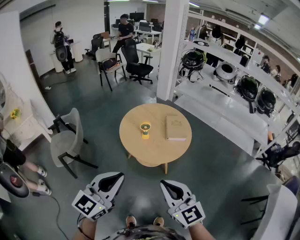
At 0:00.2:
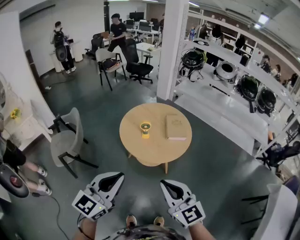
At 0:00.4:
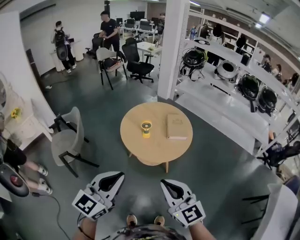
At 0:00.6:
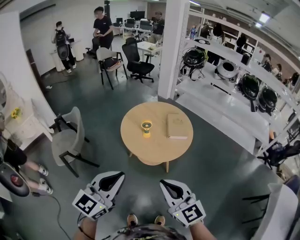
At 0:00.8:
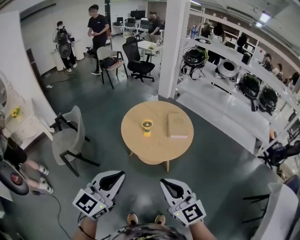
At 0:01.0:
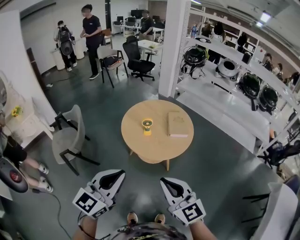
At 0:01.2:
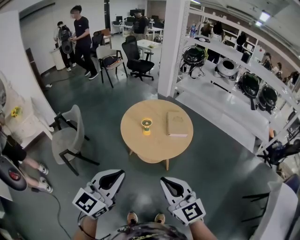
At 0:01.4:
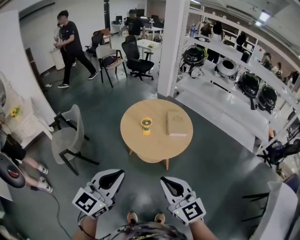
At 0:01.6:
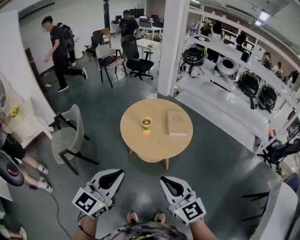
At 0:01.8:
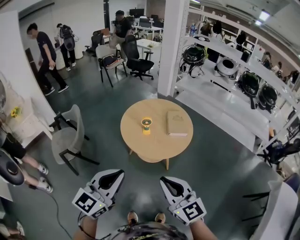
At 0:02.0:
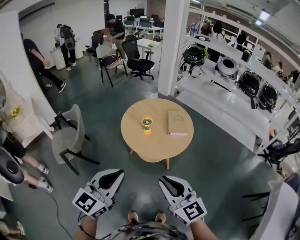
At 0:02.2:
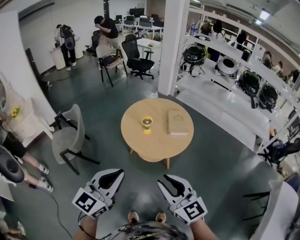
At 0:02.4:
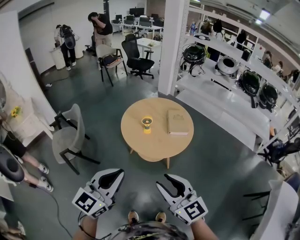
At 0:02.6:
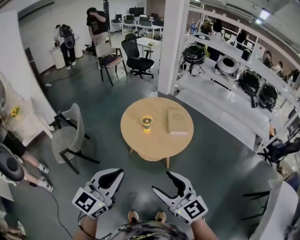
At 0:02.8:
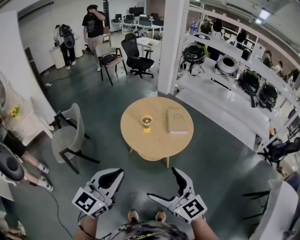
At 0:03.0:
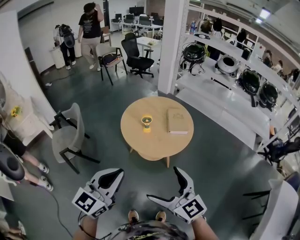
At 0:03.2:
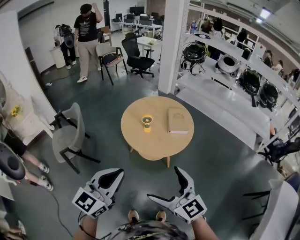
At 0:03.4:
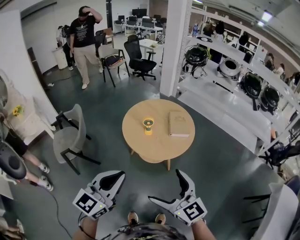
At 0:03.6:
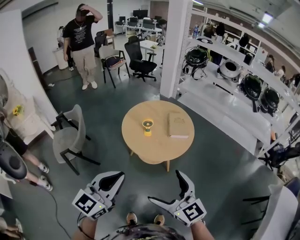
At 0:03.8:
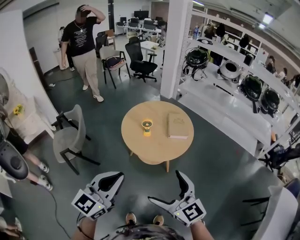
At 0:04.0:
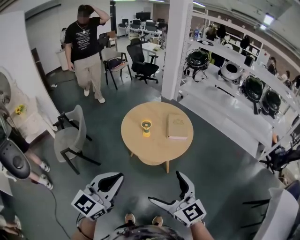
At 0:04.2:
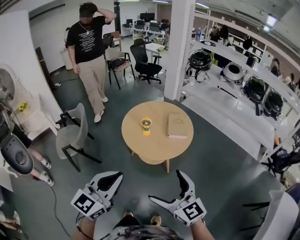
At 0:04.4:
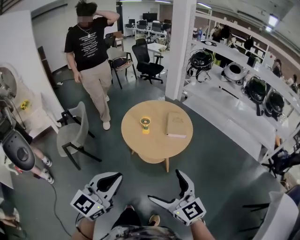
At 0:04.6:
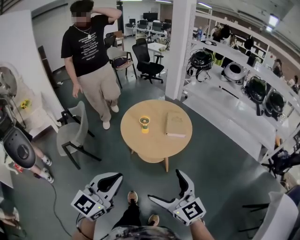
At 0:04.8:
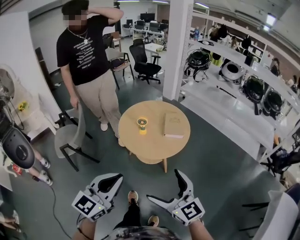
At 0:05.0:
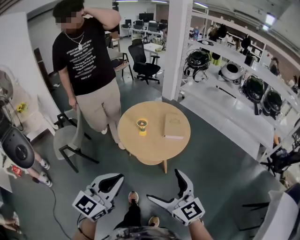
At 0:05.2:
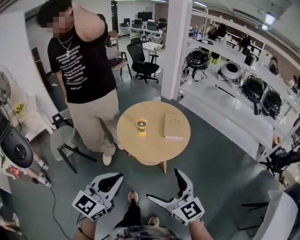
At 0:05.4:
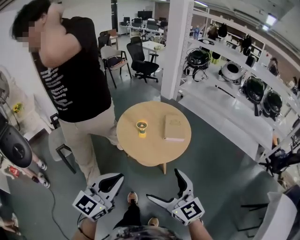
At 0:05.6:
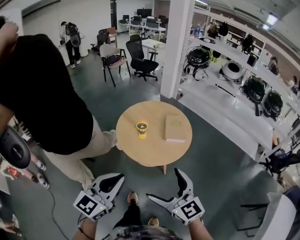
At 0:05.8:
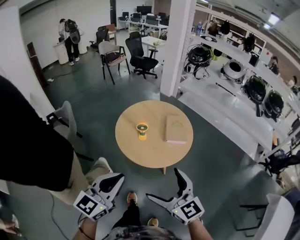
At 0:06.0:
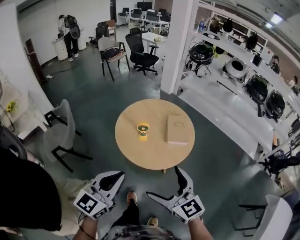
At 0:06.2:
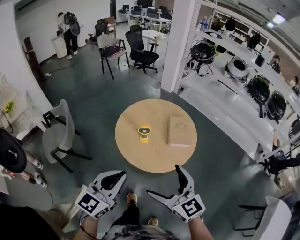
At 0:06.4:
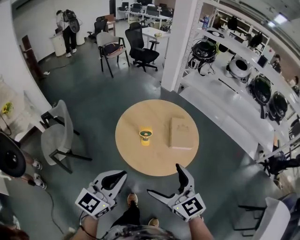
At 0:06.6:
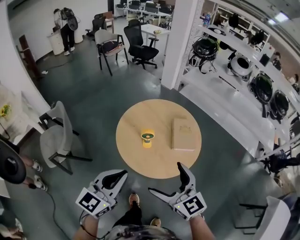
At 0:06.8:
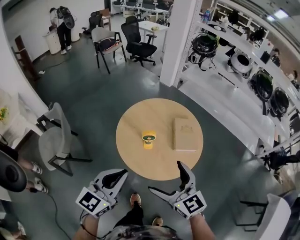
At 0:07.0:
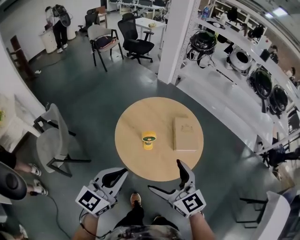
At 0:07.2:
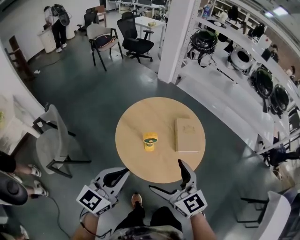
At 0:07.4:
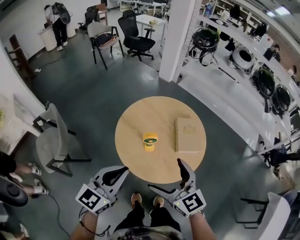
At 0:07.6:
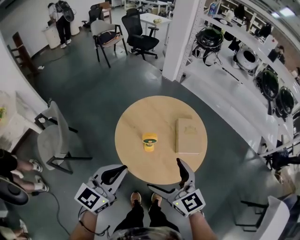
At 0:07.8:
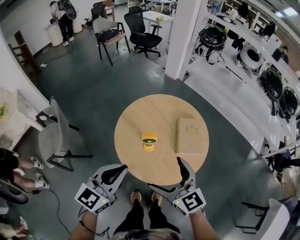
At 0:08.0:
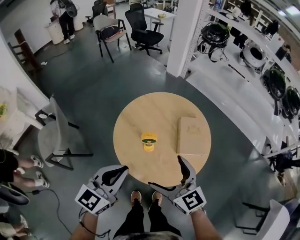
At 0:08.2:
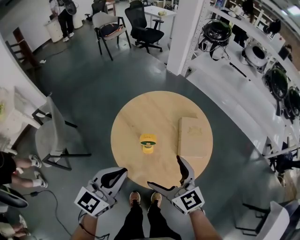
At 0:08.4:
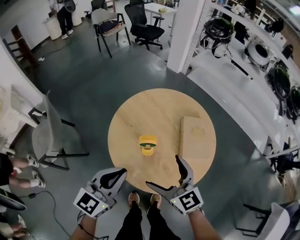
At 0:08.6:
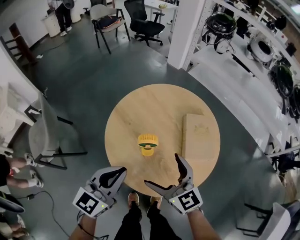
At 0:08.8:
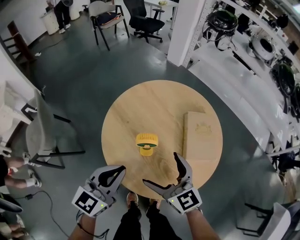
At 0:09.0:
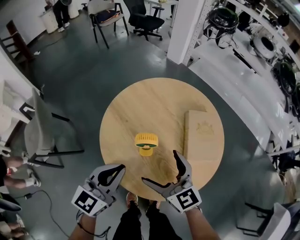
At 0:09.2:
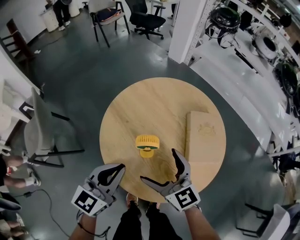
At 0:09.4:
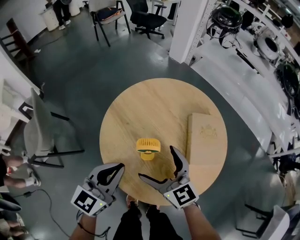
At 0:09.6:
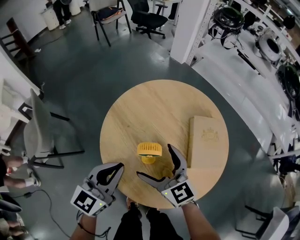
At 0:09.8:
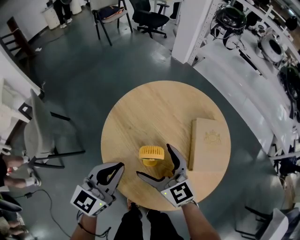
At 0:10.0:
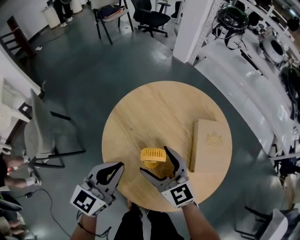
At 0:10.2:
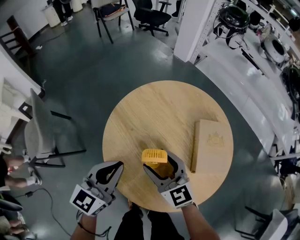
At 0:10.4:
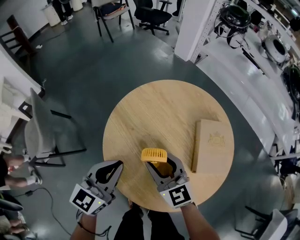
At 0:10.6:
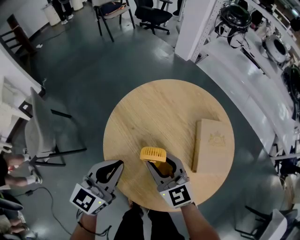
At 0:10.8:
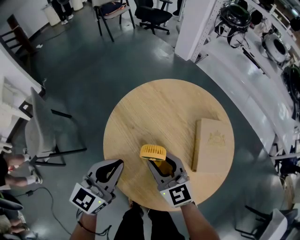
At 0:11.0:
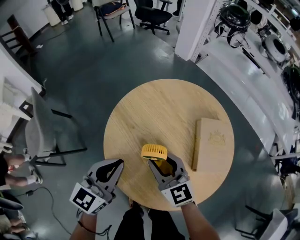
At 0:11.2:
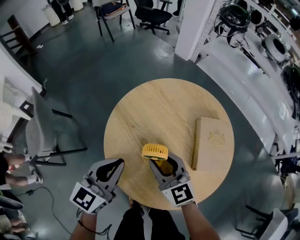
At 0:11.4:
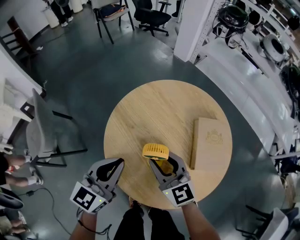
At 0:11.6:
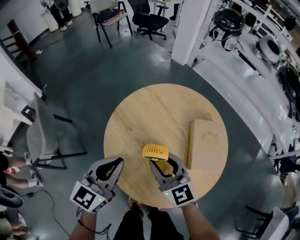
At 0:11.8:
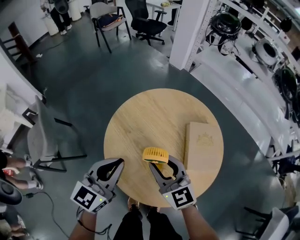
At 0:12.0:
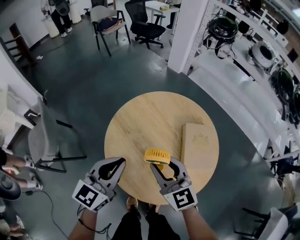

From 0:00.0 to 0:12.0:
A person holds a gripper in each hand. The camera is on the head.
From 0:00.0 to 0:01.6: There are only small adjustments of the grippers.
From 0:01.6 to 0:03.0: The right gripper opens up.
From 0:03.0 to 0:04.4: The left gripper heads to the right and backward, covering approximately 10 cm; the right gripper moves to the right, some 10 cm.
From 0:04.4 to 0:06.0: Both grippers travel together forward, roughly 15 cm.
From 0:06.0 to 0:07.6: Both grippers travel together forward, some 20 cm.
From 0:07.6 to 0:09.0: The two grippers go some 20 cm downward and forward.
From 0:09.0 to 0:10.4: The two grippers go roughly 5 cm forward. The right gripper closes its fingers.
From 0:10.4 to 0:12.0: The grippers both shift upward by some 10 cm.

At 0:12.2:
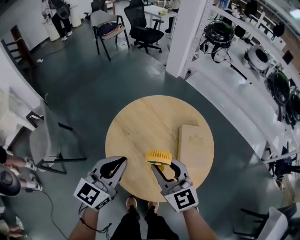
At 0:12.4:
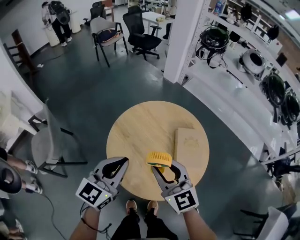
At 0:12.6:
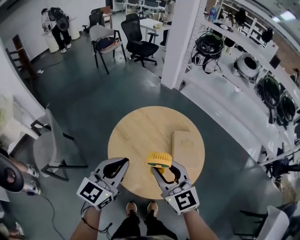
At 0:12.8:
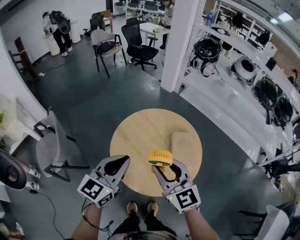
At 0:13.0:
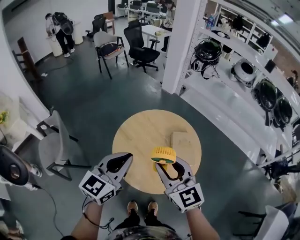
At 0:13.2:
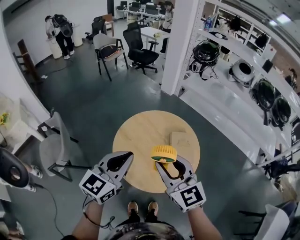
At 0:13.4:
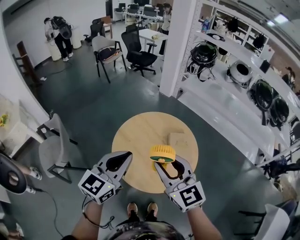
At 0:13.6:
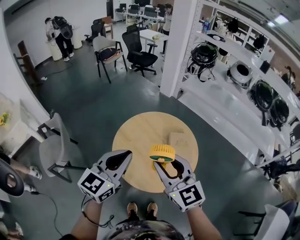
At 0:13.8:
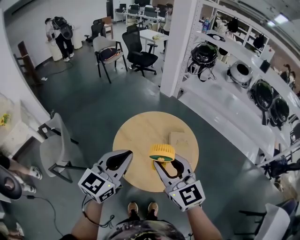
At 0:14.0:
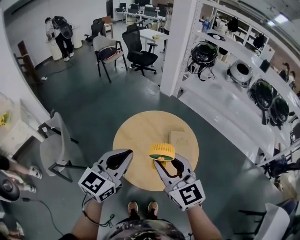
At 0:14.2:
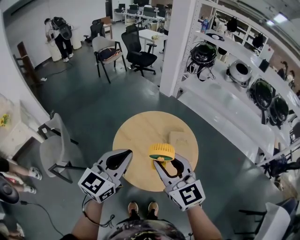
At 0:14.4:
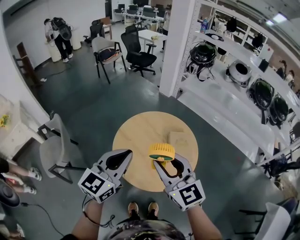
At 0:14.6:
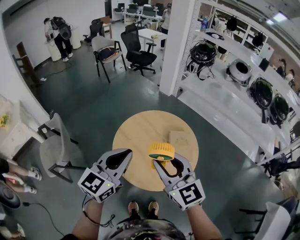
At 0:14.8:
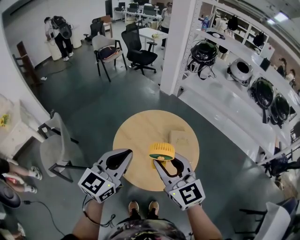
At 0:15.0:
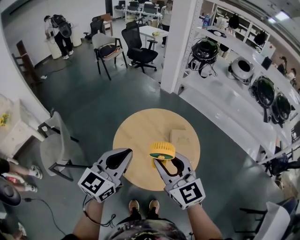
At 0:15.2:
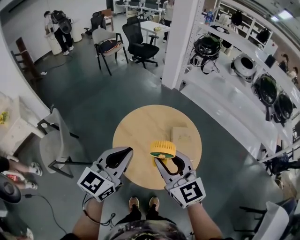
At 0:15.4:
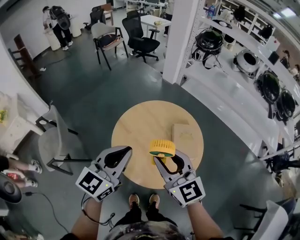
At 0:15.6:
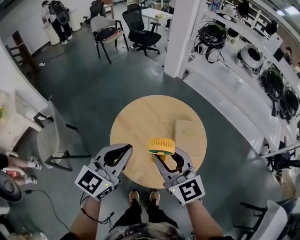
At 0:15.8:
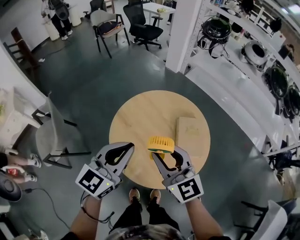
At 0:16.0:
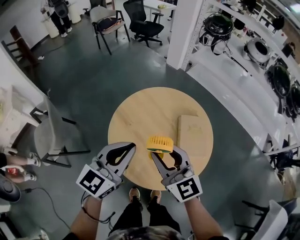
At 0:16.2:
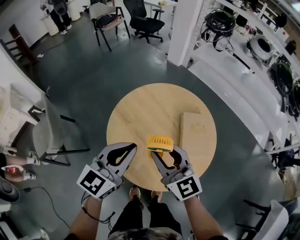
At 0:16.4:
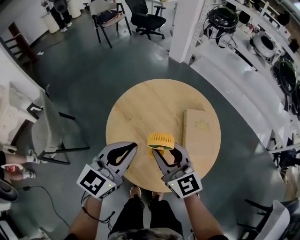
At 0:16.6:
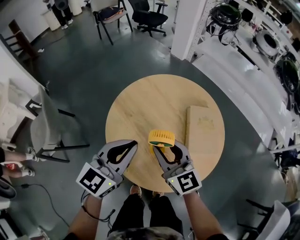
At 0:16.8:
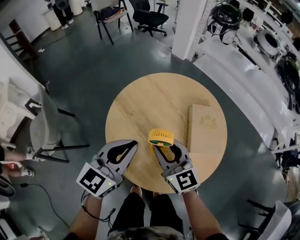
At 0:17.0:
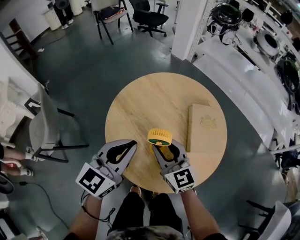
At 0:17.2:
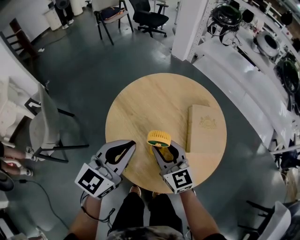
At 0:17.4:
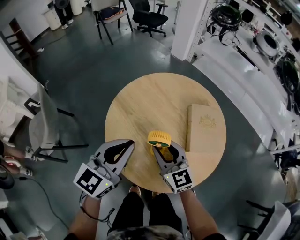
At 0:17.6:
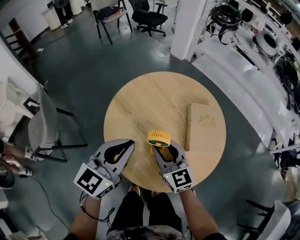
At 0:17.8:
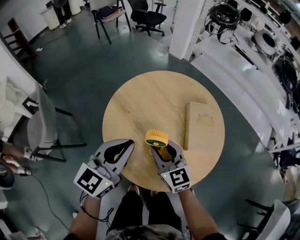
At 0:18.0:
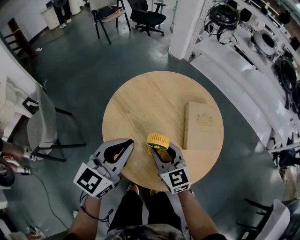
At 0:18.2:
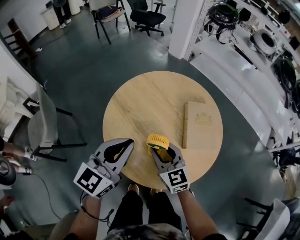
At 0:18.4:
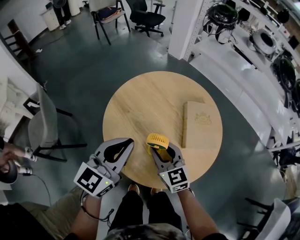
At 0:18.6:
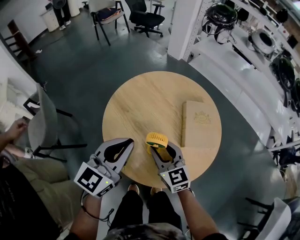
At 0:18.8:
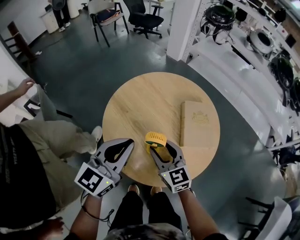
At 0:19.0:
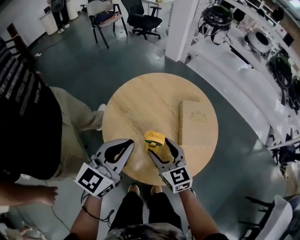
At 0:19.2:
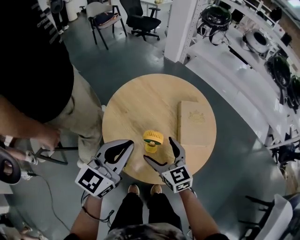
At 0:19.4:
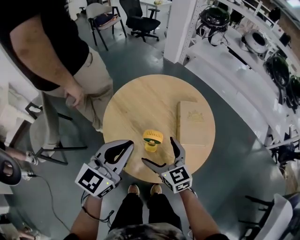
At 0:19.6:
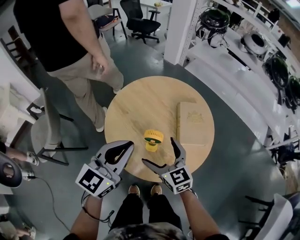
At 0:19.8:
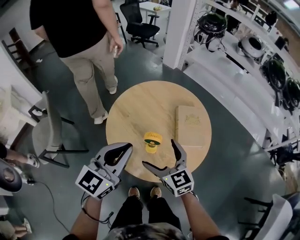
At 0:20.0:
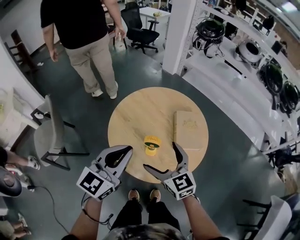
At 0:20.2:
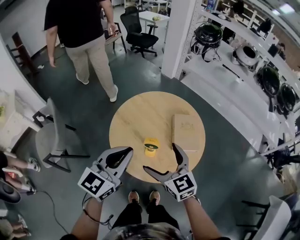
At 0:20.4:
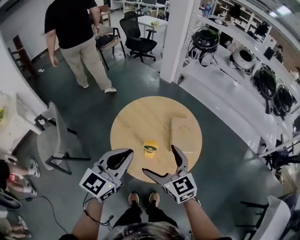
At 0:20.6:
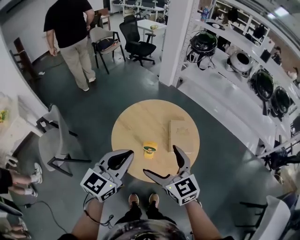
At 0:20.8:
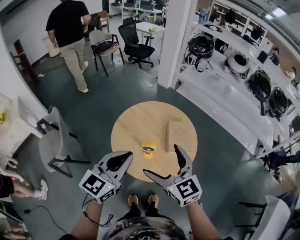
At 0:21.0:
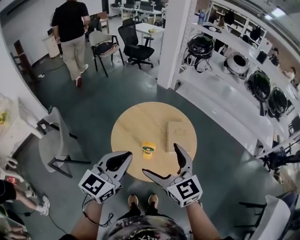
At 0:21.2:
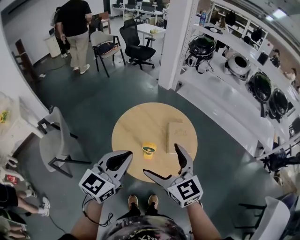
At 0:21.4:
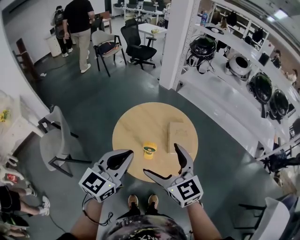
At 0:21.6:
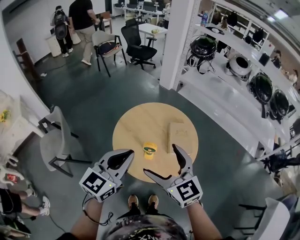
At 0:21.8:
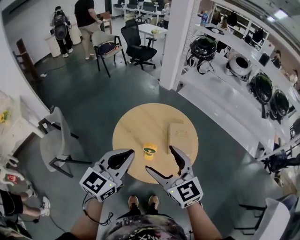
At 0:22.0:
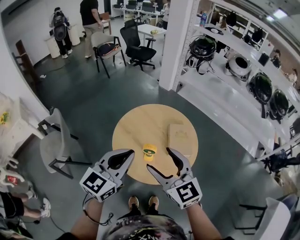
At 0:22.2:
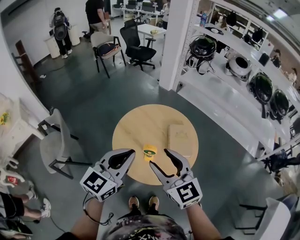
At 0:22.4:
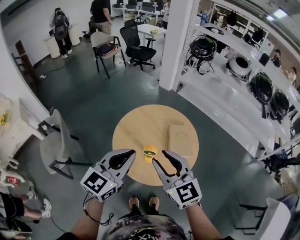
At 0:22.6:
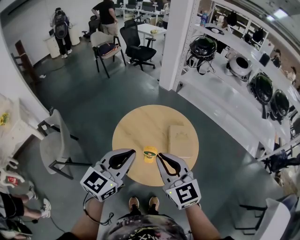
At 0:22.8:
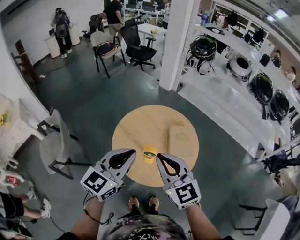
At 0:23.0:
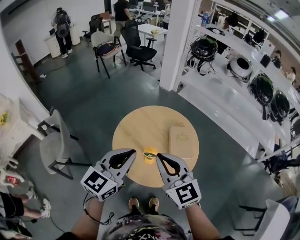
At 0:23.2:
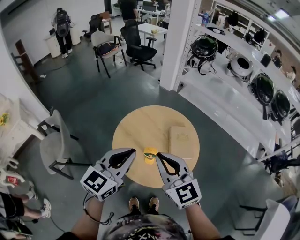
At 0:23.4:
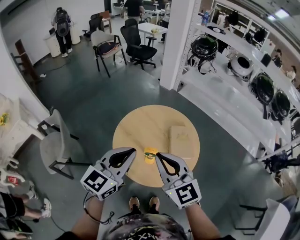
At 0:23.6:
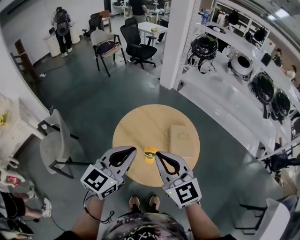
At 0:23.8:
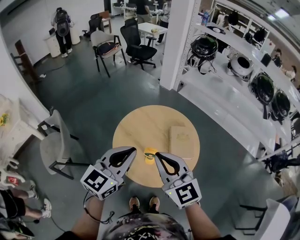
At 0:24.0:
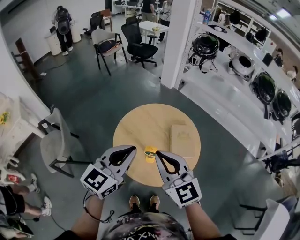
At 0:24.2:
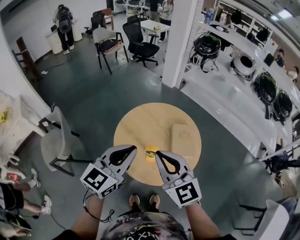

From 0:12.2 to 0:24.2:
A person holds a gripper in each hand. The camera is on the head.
From 0:12.2 to 0:13.8: The two grippers go approximately 20 cm upward and backward.
From 0:13.8 to 0:15.2: There are only small adjustments of the grippers.
From 0:15.2 to 0:16.6: Both grippers move downward, about 20 cm.
From 0:16.6 to 0:18.2: The right gripper shifts approximately 10 cm downward.
From 0:18.2 to 0:19.8: Both grippers travel together upward and backward, some 10 cm. The right gripper opens its fingers.
From 0:19.8 to 0:21.2: The right gripper heads upward, covering some 25 cm; the left gripper heads upward and backward, covering approximately 15 cm.
From 0:21.2 to 0:22.6: The right gripper closes.
From 0:22.6 to 0:24.2: The grippers make only small movements.
